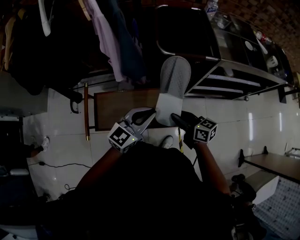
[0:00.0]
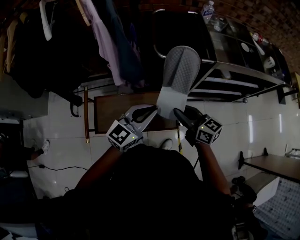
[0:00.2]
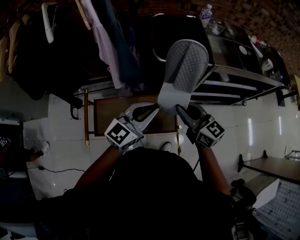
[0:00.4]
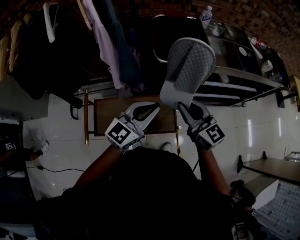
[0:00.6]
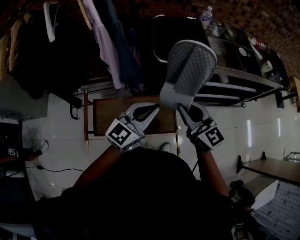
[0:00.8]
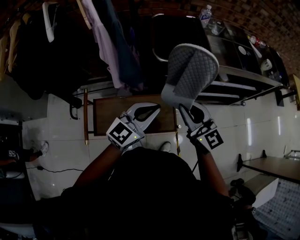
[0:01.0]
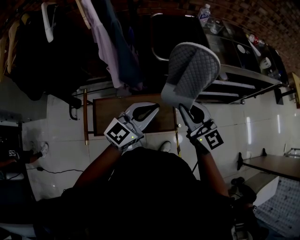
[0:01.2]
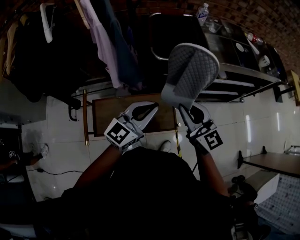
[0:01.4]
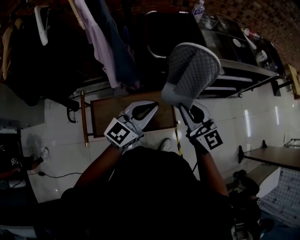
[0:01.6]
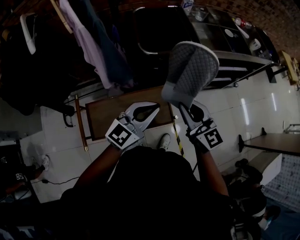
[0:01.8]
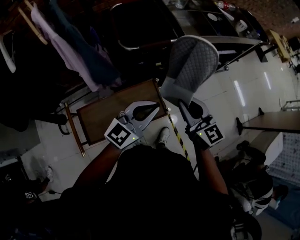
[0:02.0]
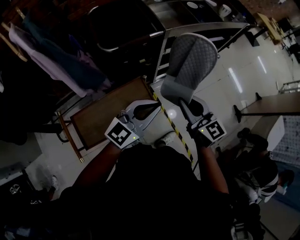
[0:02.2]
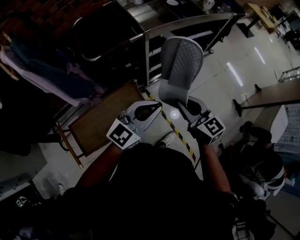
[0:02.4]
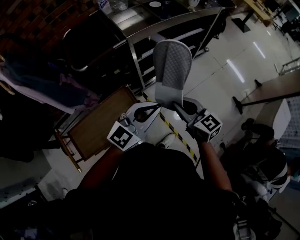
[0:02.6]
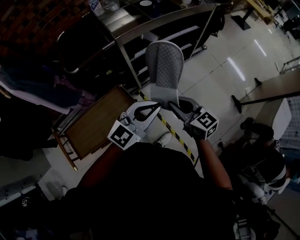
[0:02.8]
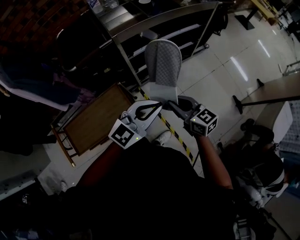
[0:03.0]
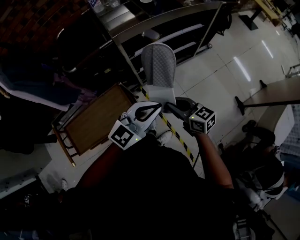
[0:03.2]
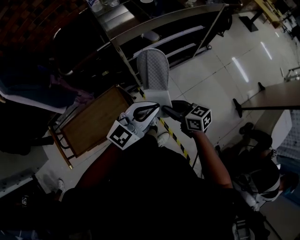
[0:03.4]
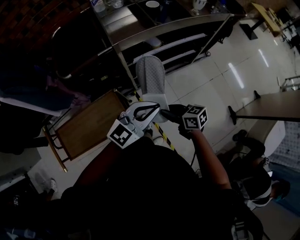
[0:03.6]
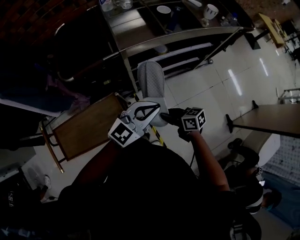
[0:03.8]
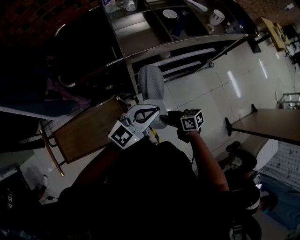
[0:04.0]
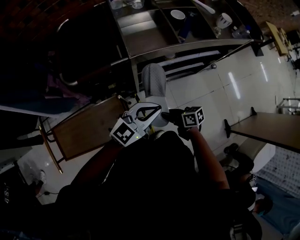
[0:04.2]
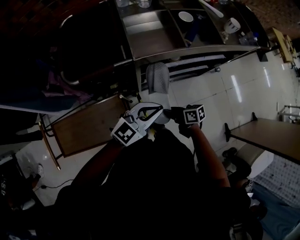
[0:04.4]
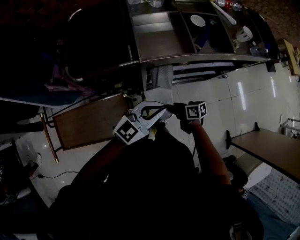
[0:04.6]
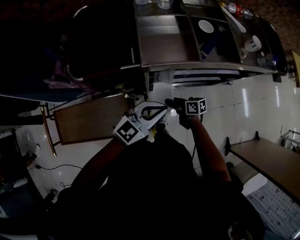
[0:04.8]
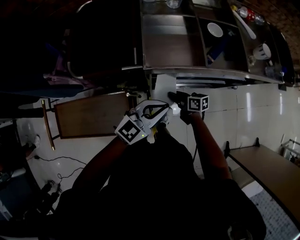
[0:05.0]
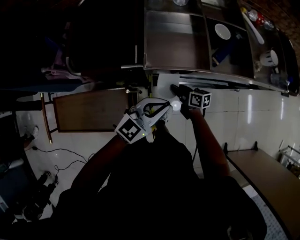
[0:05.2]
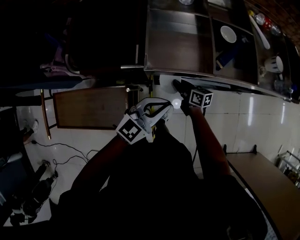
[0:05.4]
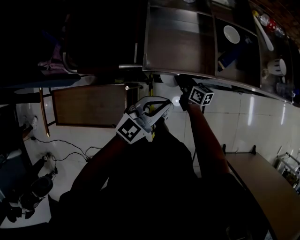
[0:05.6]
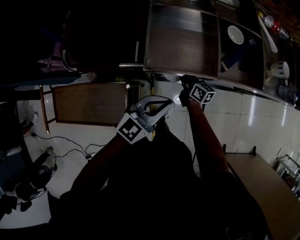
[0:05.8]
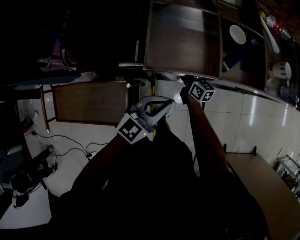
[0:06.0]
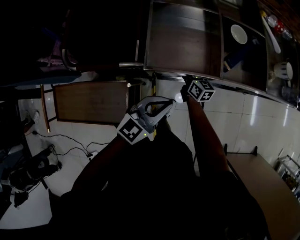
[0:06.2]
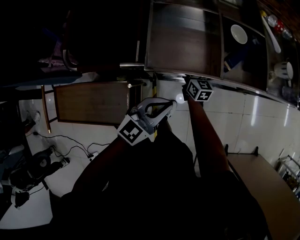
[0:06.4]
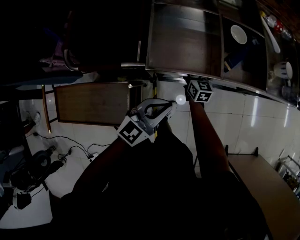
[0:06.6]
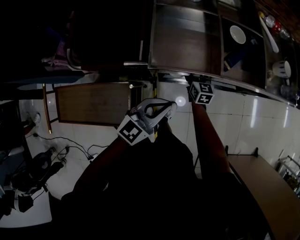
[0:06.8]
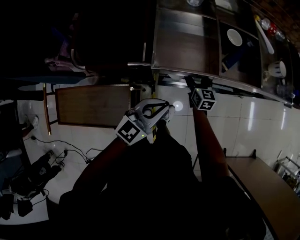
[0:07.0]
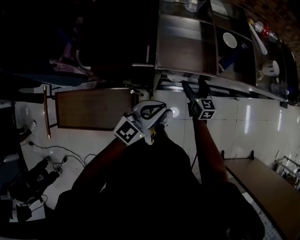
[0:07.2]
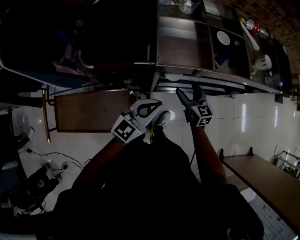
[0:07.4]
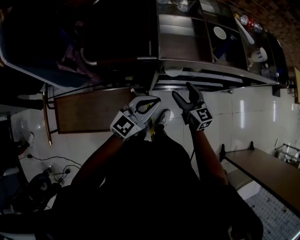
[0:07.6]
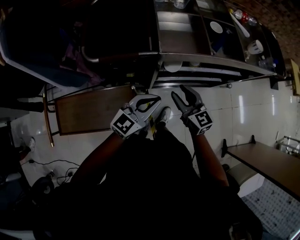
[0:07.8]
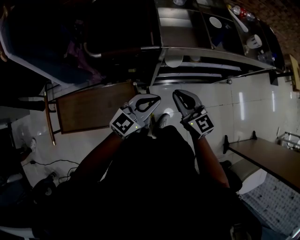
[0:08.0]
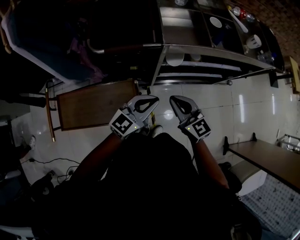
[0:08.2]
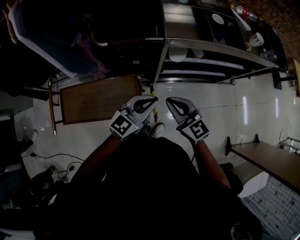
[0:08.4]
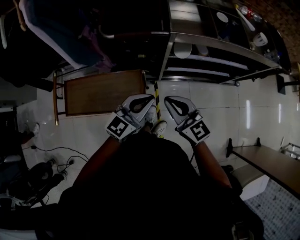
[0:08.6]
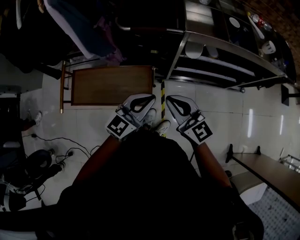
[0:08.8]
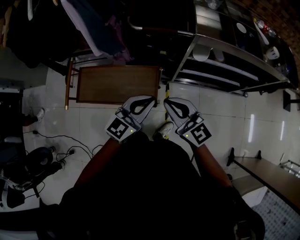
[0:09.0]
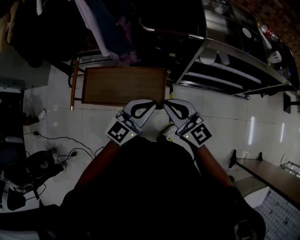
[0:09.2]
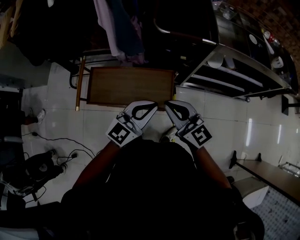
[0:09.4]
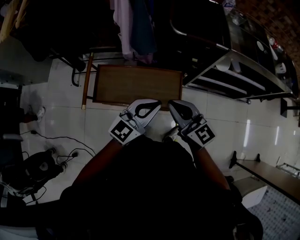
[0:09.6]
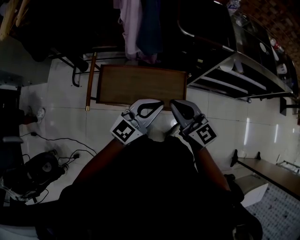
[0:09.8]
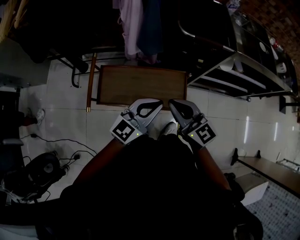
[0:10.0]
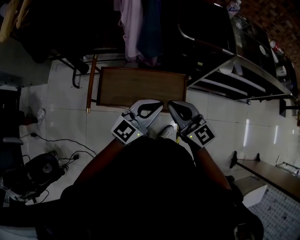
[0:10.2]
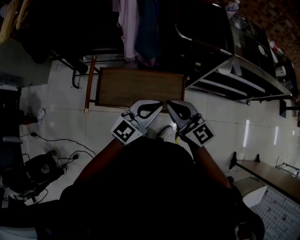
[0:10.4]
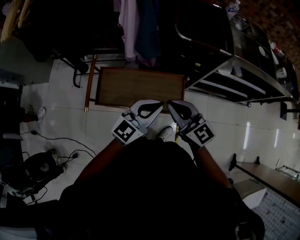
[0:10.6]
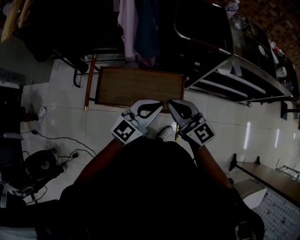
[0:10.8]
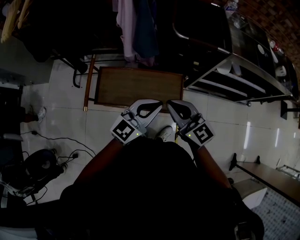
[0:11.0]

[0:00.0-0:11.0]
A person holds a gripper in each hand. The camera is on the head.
0.0 to 1.6 s: The right gripper shifts some 15 cm upward, and swivels approximately 40 degrees; the left gripper shifts roughly 10 cm upward.
1.6 to 3.2 s: The right gripper moves to the right and downward, approximately 35 cm, and rotates approximately 30 degrees. The left gripper is displaced to the right by some 35 cm, and rotates approximately 30 degrees.
3.2 to 4.8 s: The left gripper moves approximately 25 cm. Meanwhile the right gripper changes place by approximately 35 cm, and turns by some 40 degrees.
4.8 to 6.2 s: The right gripper shifts roughly 20 cm forward, and changes its angle by roughly 30 degrees. Meanwhile the left gripper moves forward and downward, about 10 cm.
6.2 to 7.8 s: The left gripper heads backward and to the left, covering approximately 10 cm, while the right gripper travels backward and upward by roughly 30 cm, rotates approximately 30 degrees, and opens and closes again.
7.8 to 9.4 s: The two grippers go approximately 35 cm to the left and backward. The right gripper changes its angle by approximately 20 degrees, and closes up.
9.4 to 11.0 s: Both grippers travel together to the left, roughly 5 cm.

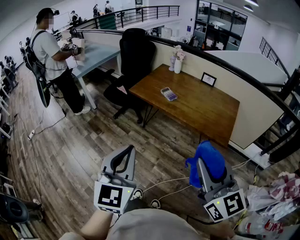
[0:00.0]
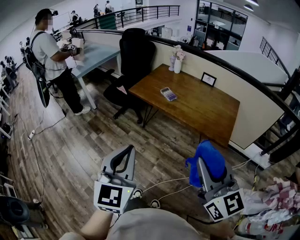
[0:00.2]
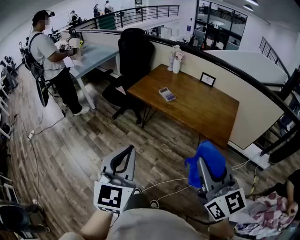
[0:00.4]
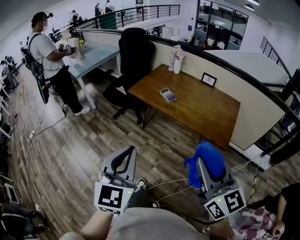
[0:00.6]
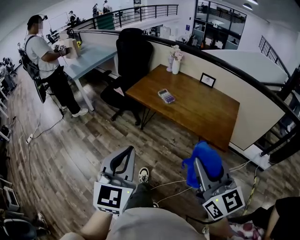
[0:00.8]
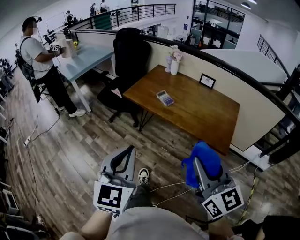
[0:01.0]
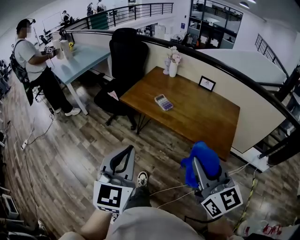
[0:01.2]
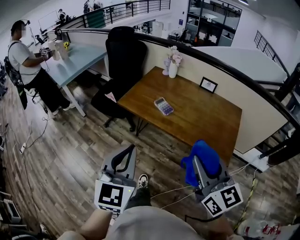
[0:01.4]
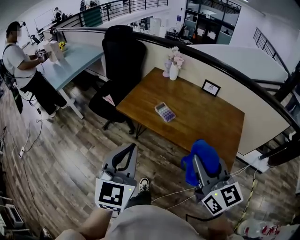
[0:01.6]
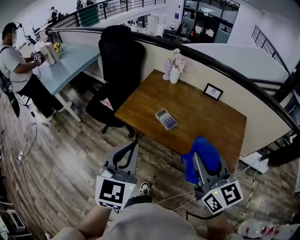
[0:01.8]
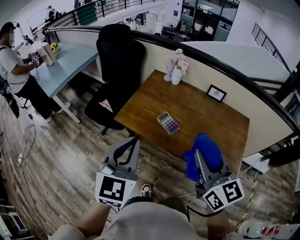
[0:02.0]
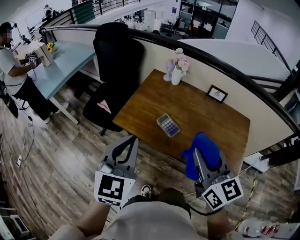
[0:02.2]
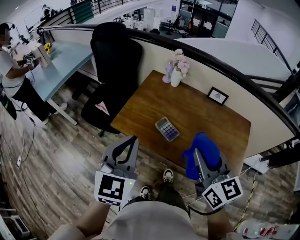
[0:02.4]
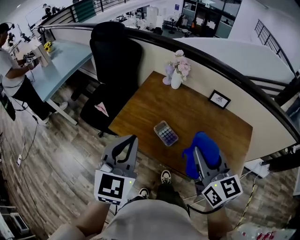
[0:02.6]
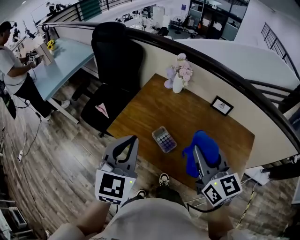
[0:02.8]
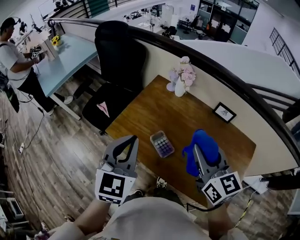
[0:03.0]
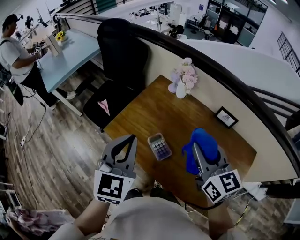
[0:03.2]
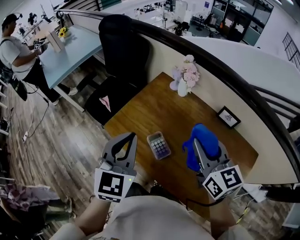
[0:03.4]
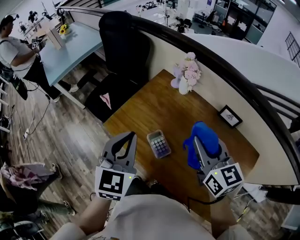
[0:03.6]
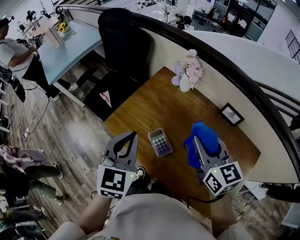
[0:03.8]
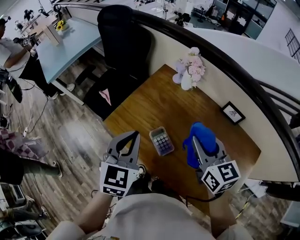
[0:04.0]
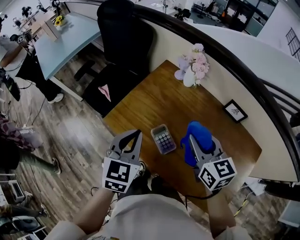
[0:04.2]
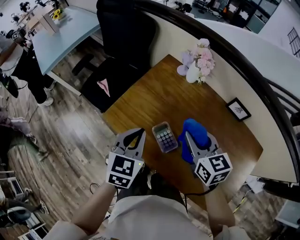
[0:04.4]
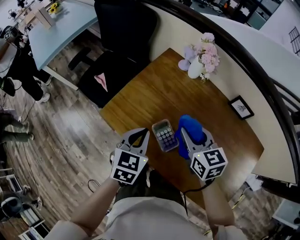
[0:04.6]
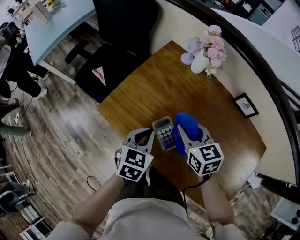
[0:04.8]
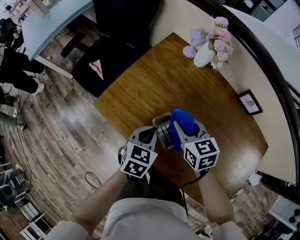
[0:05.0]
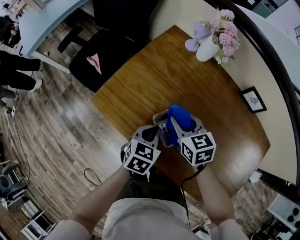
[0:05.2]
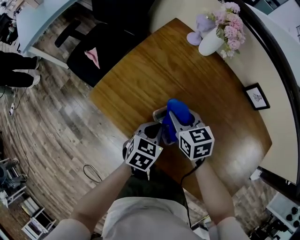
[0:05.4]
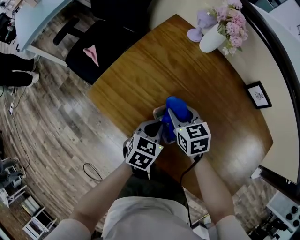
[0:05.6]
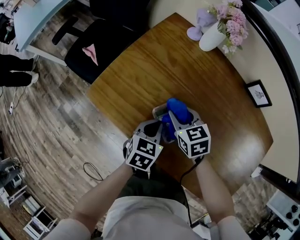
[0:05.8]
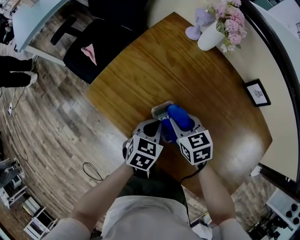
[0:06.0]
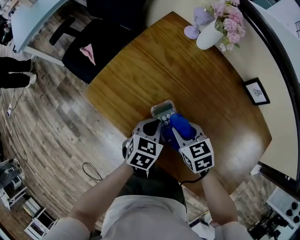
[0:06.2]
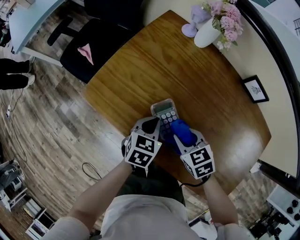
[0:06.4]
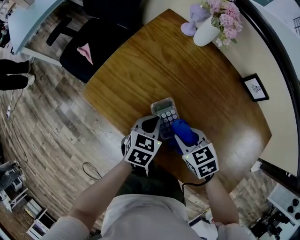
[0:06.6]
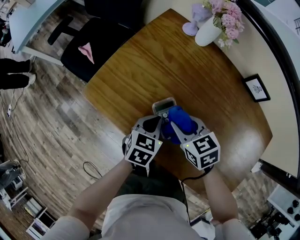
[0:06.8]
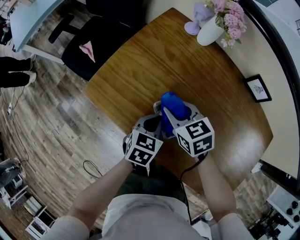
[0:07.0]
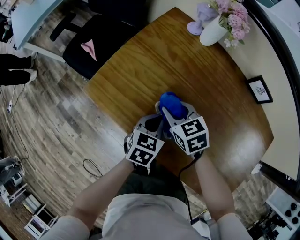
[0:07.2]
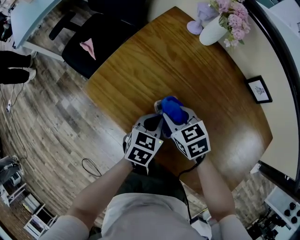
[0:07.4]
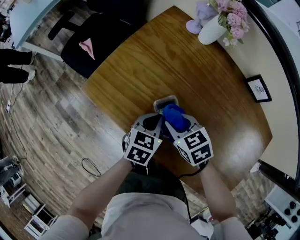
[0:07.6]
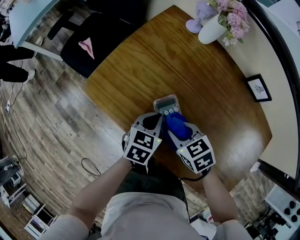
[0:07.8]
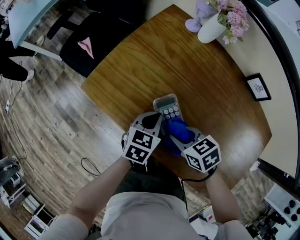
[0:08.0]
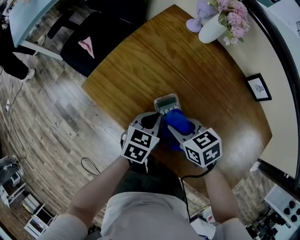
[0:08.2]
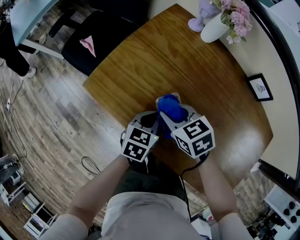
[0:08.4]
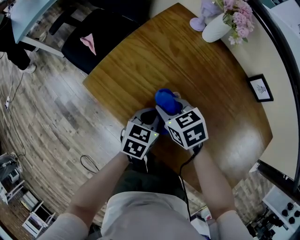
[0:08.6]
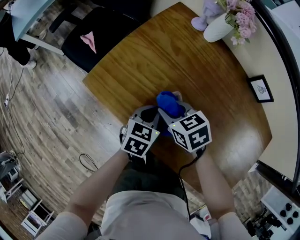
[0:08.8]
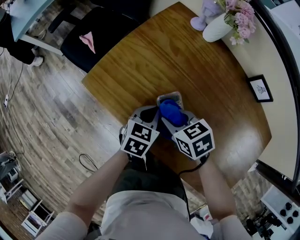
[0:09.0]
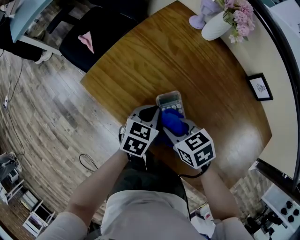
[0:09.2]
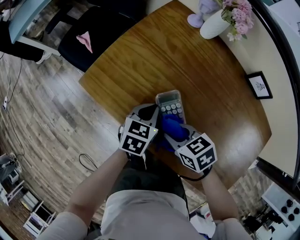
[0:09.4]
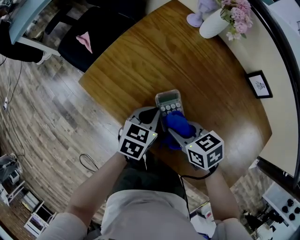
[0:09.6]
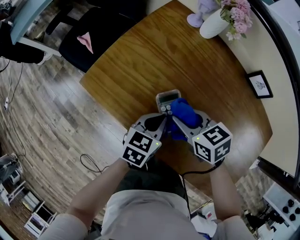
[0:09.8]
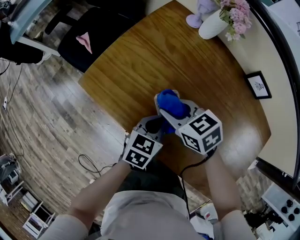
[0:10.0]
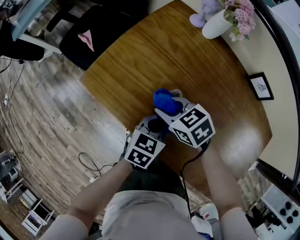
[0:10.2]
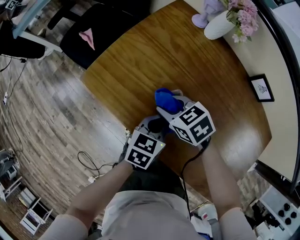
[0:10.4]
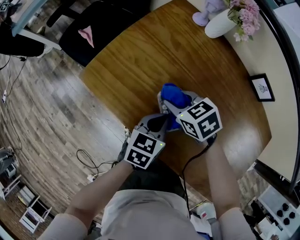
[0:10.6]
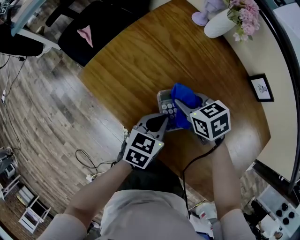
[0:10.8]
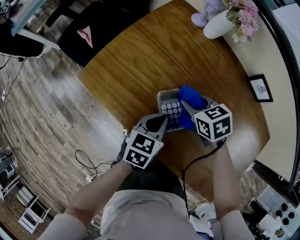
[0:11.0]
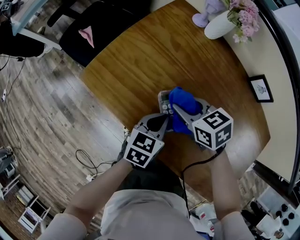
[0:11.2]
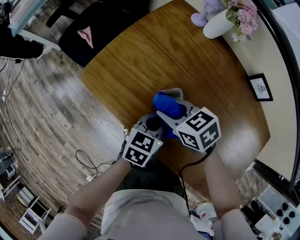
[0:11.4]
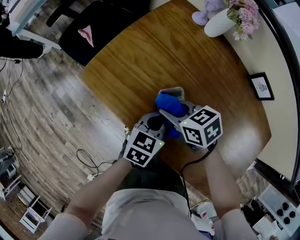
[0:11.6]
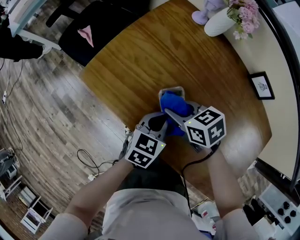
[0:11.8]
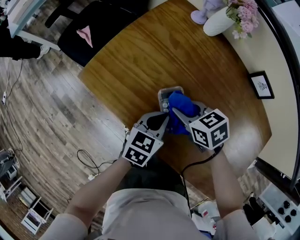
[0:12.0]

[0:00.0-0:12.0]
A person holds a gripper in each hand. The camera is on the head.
0.0 to 1.6 s: Both grippers travel together forward, roughly 30 cm.
1.6 to 3.0 s: Both grippers move forward, roughly 35 cm.
3.0 to 4.4 s: The grippers both shift downward and forward by about 15 cm.
4.4 to 6.0 s: Both grippers move downward, approximately 25 cm. The left gripper swivels approximately 20 degrees; the right gripper changes its angle by about 20 degrees.
6.0 to 7.6 s: The right gripper swings forward and backward, about 10 cm each way, with 2 reversals.
7.6 to 9.0 s: The right gripper moves forward and backward over approximately 10 cm, changing direction 2 times.
9.0 to 10.4 s: The right gripper moves approximately 5 cm backward and comes back, while the left gripper moves approximately 5 cm.
10.4 to 12.0 s: The right gripper goes left and right, roughly 10 cm each way, reversing 2 times.

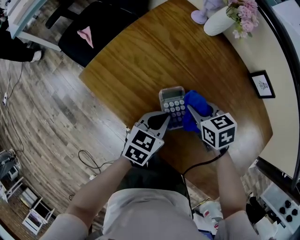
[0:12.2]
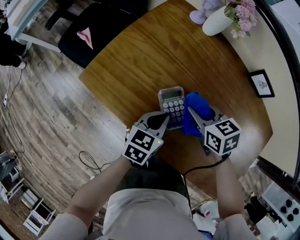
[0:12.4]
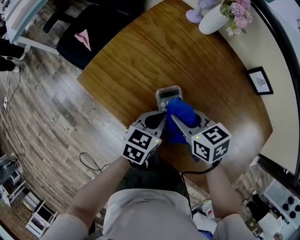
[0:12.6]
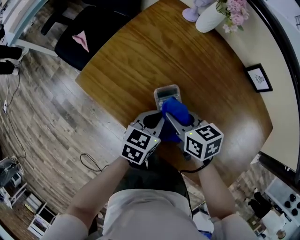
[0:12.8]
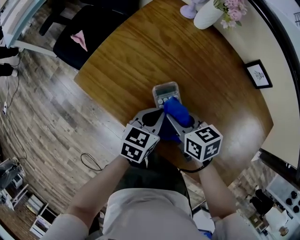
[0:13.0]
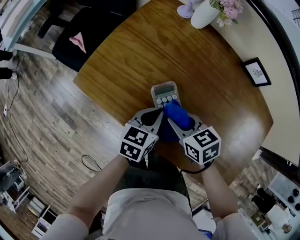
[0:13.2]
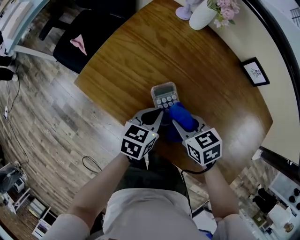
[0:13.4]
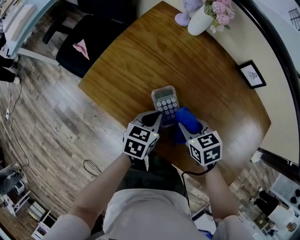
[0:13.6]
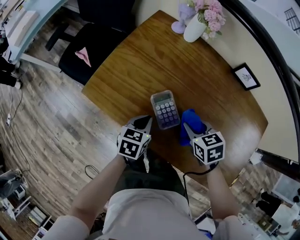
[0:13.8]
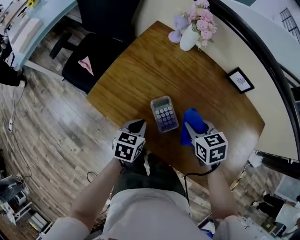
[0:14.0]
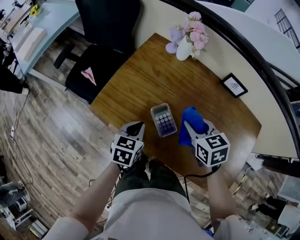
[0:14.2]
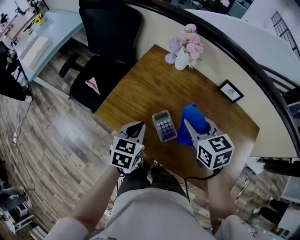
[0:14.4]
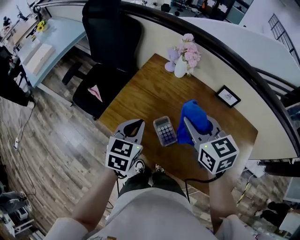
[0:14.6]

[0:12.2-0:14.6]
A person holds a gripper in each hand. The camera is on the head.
12.2 to 13.4 s: The right gripper goes roughly 5 cm backward.
13.4 to 14.6 s: The left gripper shifts about 25 cm upward and to the left, and turns by roughly 20 degrees. The right gripper travels upward by about 30 cm, and turns by approximately 30 degrees.
